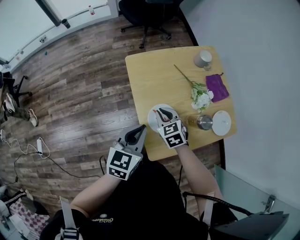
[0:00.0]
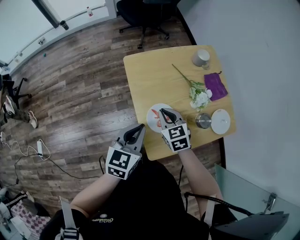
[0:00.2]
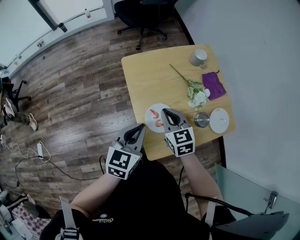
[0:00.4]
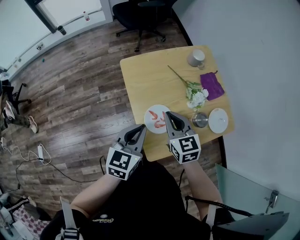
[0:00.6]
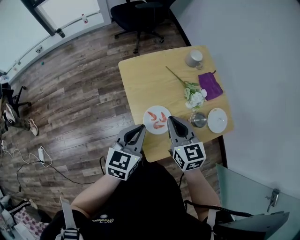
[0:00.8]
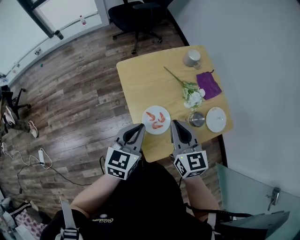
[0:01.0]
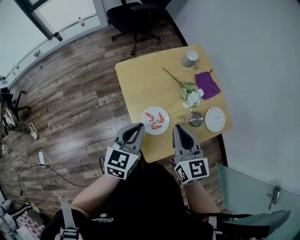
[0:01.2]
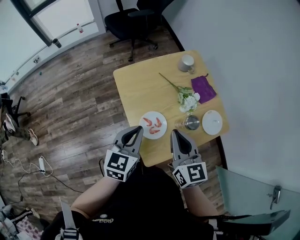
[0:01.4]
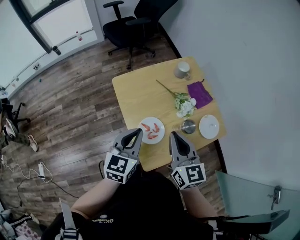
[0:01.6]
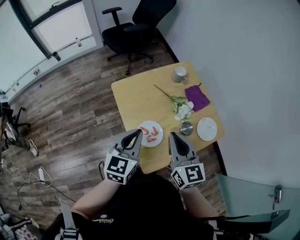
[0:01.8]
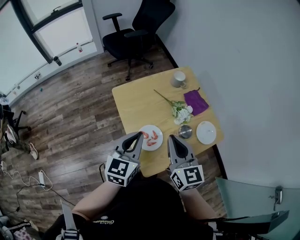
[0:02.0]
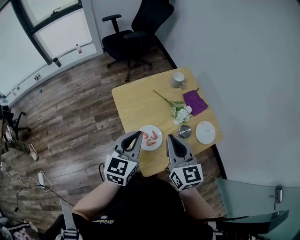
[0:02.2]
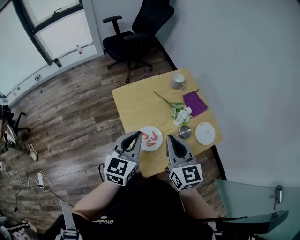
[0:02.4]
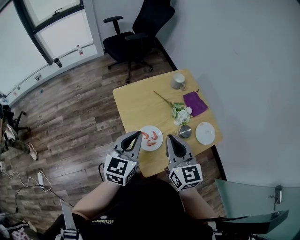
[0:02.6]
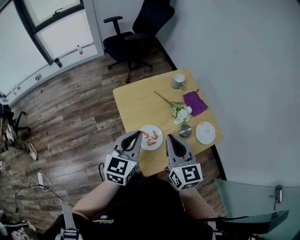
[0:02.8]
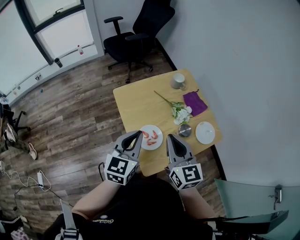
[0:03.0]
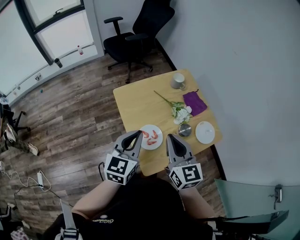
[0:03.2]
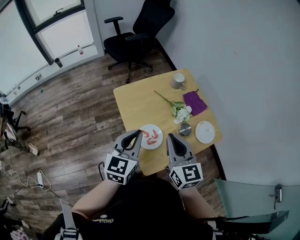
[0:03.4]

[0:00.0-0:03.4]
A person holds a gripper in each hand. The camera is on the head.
0:00.0 to 0:01.6: The left gripper ends up about 5 cm from where it was. Meanwhile the right gripper is displaced upward and to the right by approximately 20 cm, and angles its fingers upward, by some 30 degrees.
0:01.6 to 0:03.4: There are only small adjustments of the grippers.

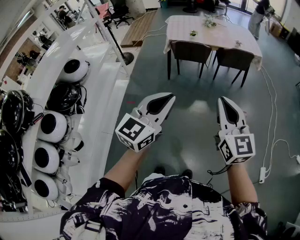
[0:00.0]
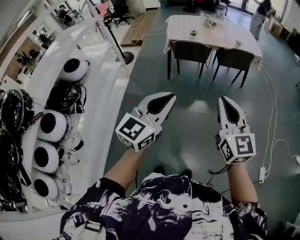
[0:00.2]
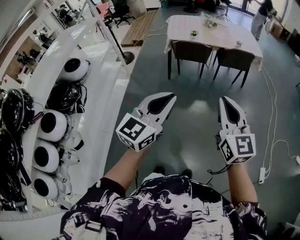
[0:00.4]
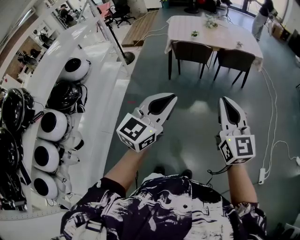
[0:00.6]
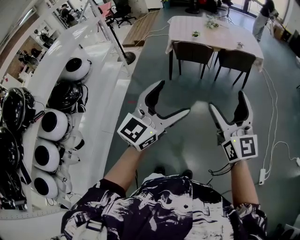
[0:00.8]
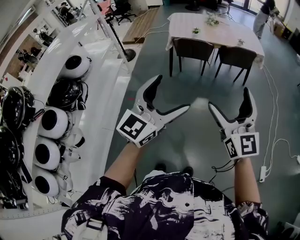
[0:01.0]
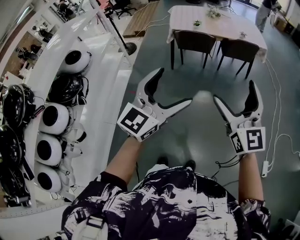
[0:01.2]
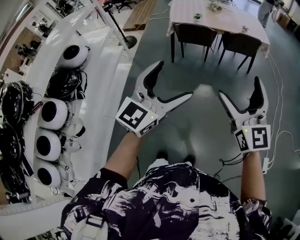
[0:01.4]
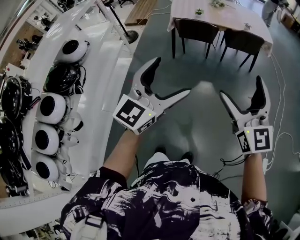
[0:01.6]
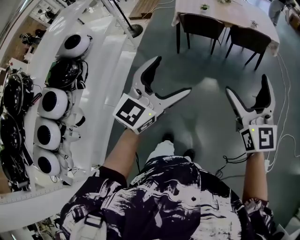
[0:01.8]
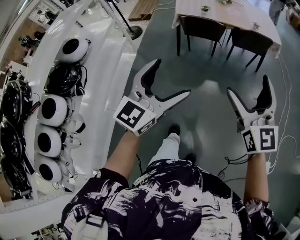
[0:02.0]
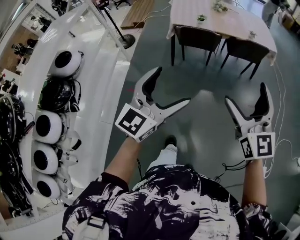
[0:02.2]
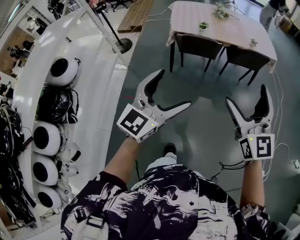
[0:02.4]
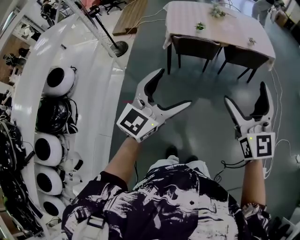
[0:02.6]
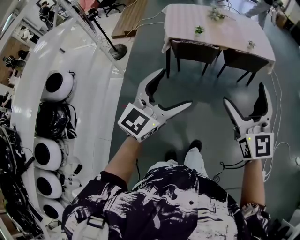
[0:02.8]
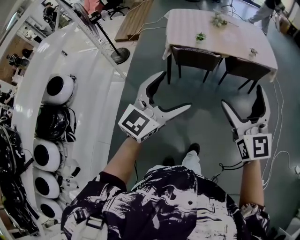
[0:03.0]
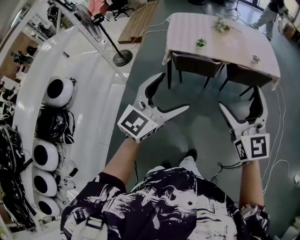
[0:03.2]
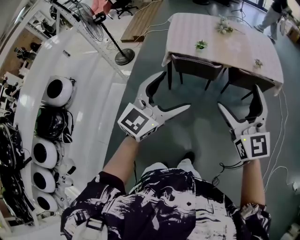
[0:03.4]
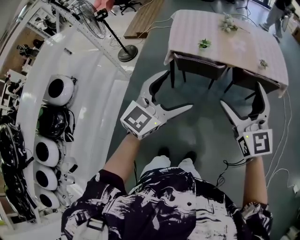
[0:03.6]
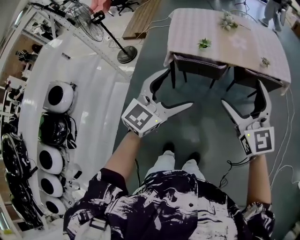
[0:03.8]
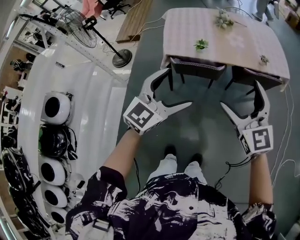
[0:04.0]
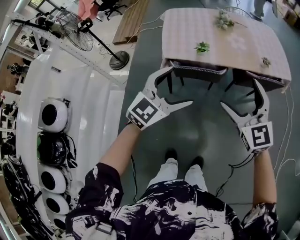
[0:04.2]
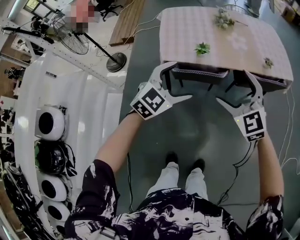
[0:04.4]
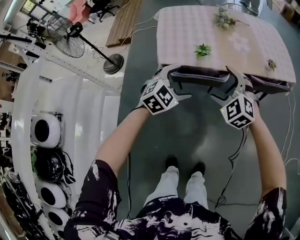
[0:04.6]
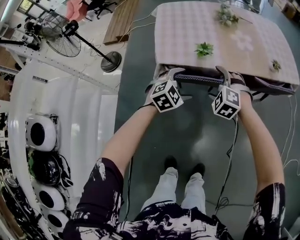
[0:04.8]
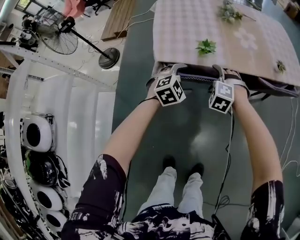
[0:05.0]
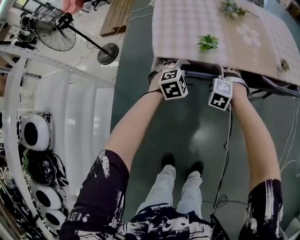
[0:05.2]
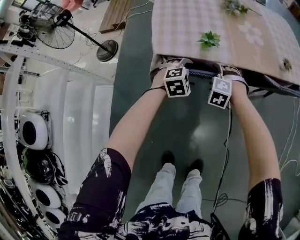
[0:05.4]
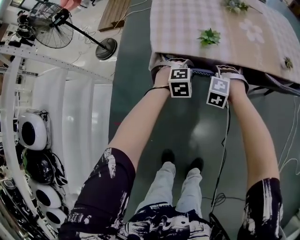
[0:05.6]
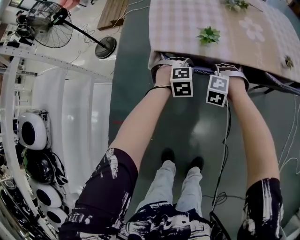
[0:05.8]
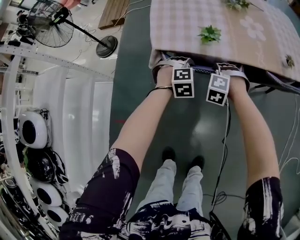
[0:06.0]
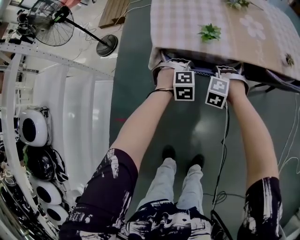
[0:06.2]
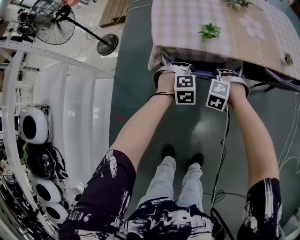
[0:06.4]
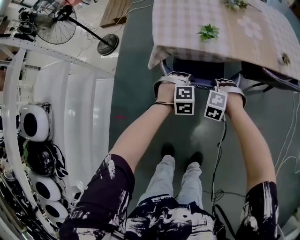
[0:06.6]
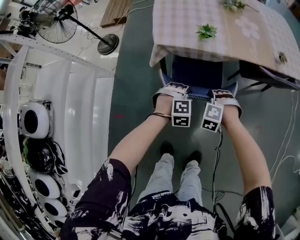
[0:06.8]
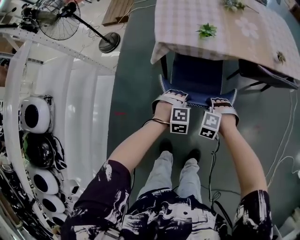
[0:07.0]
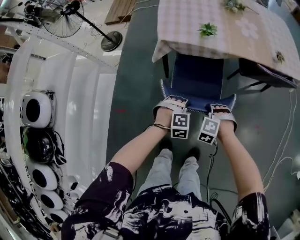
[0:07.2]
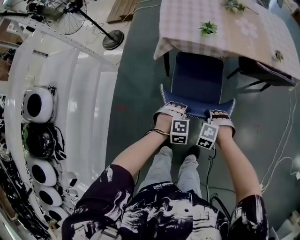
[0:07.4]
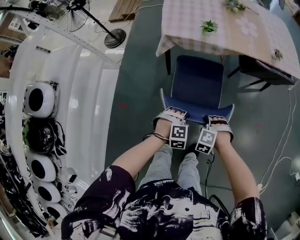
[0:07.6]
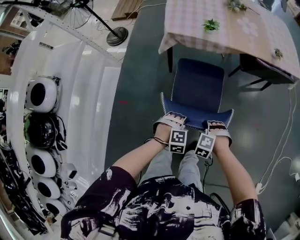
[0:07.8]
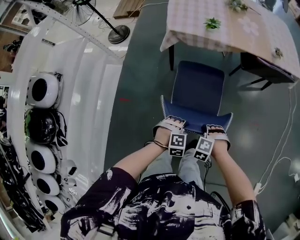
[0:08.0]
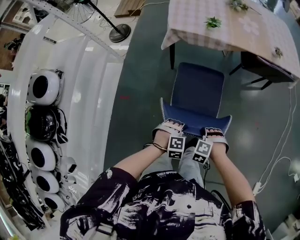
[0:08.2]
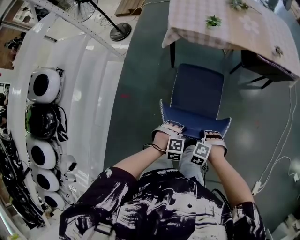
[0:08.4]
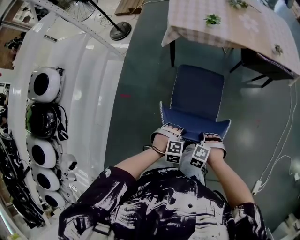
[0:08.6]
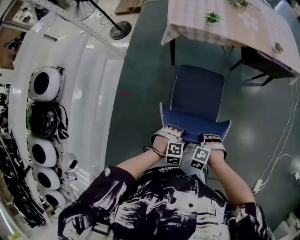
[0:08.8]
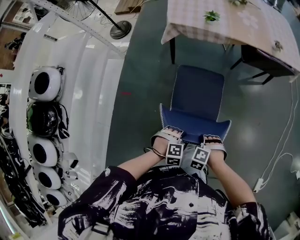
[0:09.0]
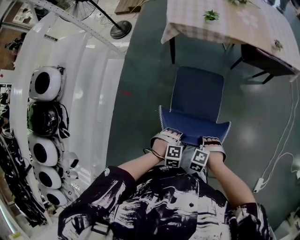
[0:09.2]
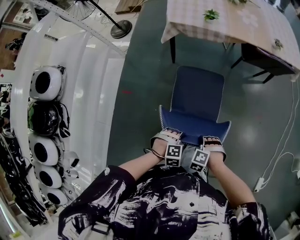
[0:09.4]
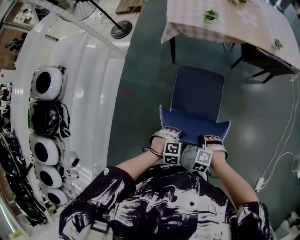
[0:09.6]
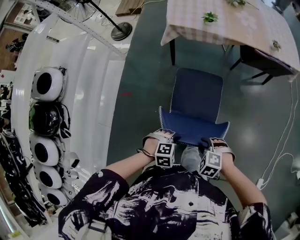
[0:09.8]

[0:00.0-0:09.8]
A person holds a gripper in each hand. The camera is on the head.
0:00.0 to 0:01.4: The right gripper opens its fingers. The left gripper opens up.
0:01.4 to 0:02.8: The two grippers go roughly 30 cm forward.
0:02.8 to 0:04.2: Both grippers move forward, roughly 30 cm. The left gripper changes its angle by about 20 degrees.
0:04.2 to 0:05.6: Both grippers move downward and forward, some 50 cm. The right gripper angles its fingers downward, by roughly 50 degrees, and closes its fingers. The left gripper tilts its fingers about 40 degrees downward, and closes.
0:05.6 to 0:07.0: Both grippers travel together backward, approximately 20 cm.
0:07.0 to 0:08.4: The left gripper changes place by about 30 cm, while the right gripper moves about 30 cm.
0:08.4 to 0:09.8: The right gripper moves upward, some 10 cm, and changes its angle by roughly 20 degrees, while the left gripper shifts by roughly 10 cm.

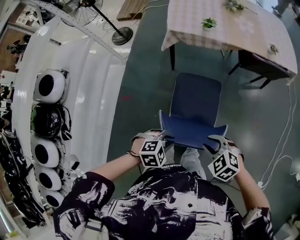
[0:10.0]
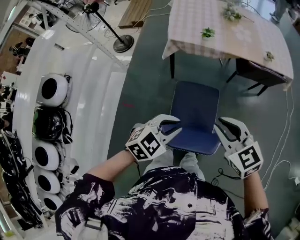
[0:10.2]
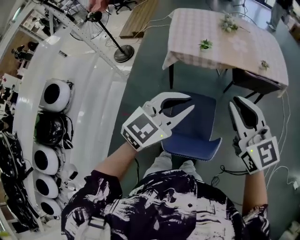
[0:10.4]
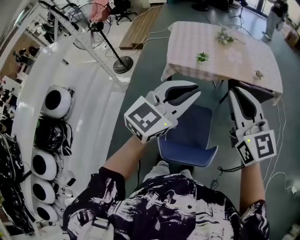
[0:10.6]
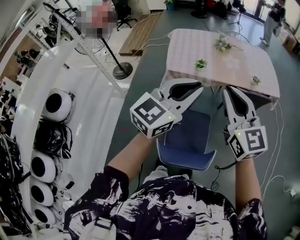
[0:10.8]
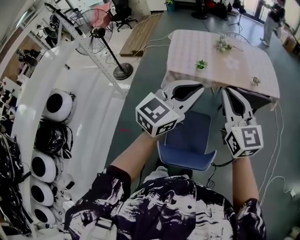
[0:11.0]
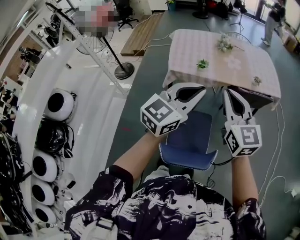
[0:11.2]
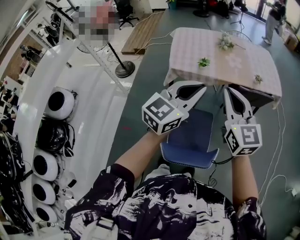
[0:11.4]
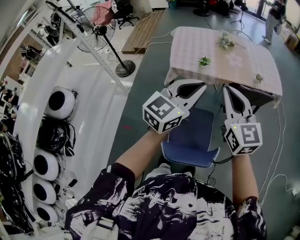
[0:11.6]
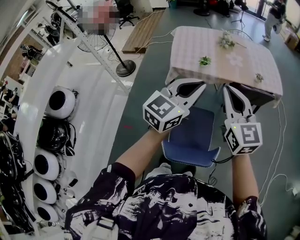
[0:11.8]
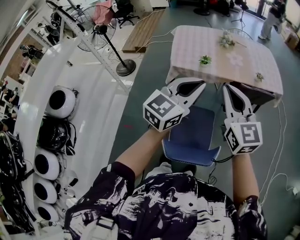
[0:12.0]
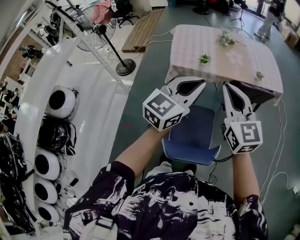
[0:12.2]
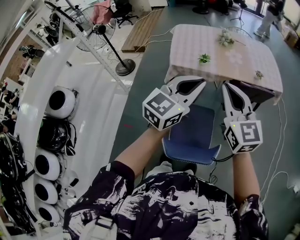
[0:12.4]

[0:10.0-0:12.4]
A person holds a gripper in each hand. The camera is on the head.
0:10.0 to 0:11.2: The two grippers go about 35 cm upward. The right gripper angles its fingers upward, by approximately 50 degrees; the left gripper tips its fingers upward by some 60 degrees.
0:11.2 to 0:12.4: The grippers stay close to where they were, moving slightly.

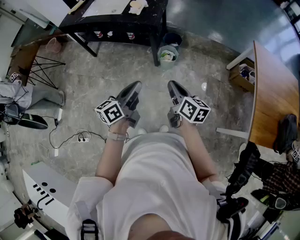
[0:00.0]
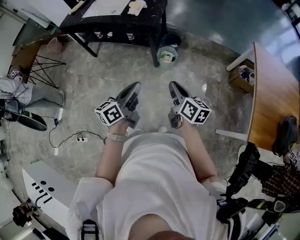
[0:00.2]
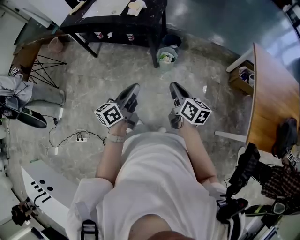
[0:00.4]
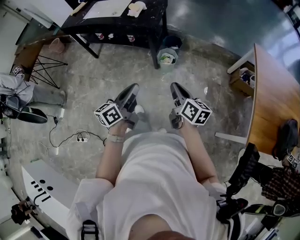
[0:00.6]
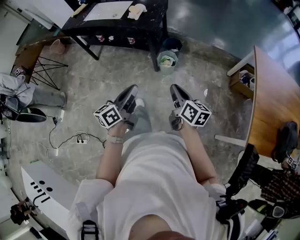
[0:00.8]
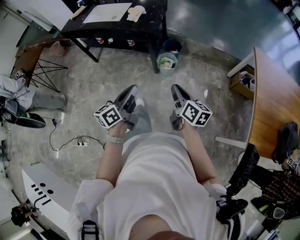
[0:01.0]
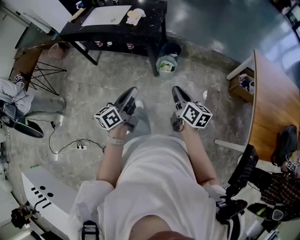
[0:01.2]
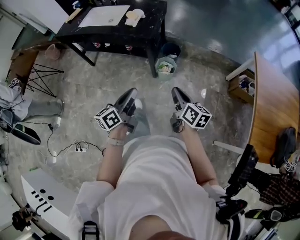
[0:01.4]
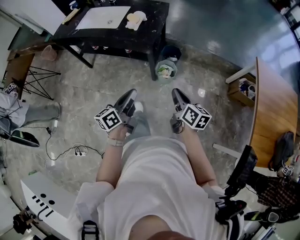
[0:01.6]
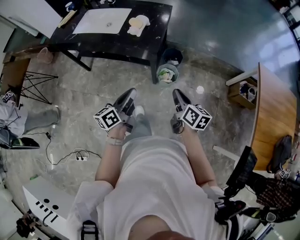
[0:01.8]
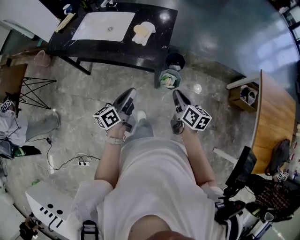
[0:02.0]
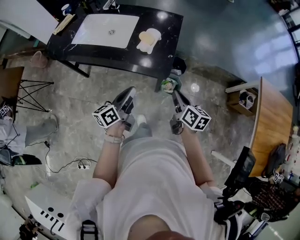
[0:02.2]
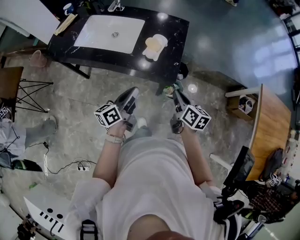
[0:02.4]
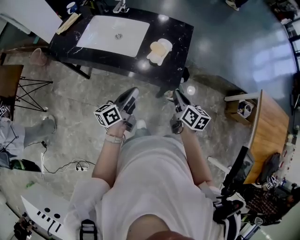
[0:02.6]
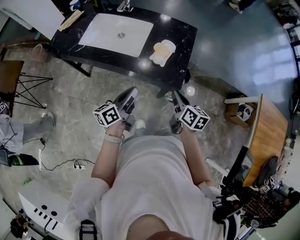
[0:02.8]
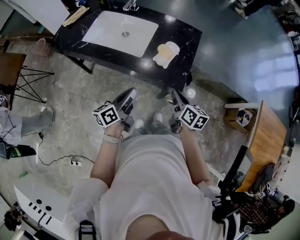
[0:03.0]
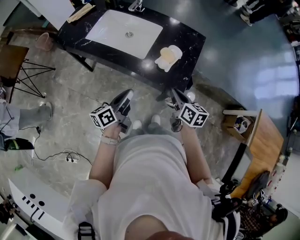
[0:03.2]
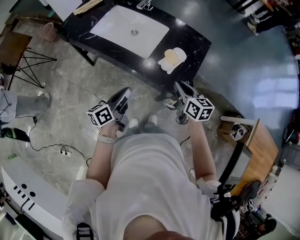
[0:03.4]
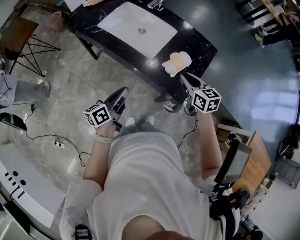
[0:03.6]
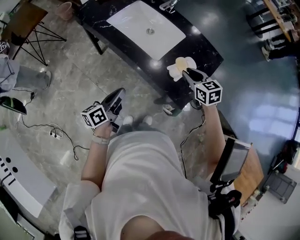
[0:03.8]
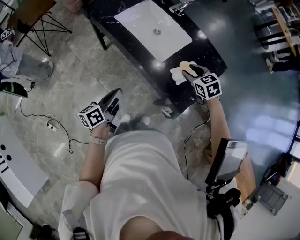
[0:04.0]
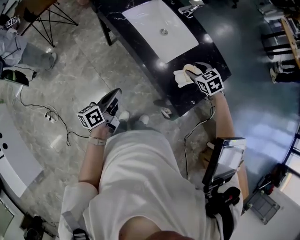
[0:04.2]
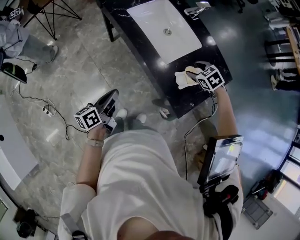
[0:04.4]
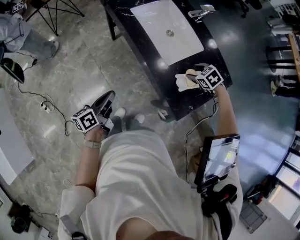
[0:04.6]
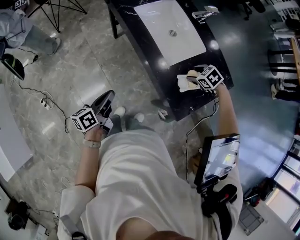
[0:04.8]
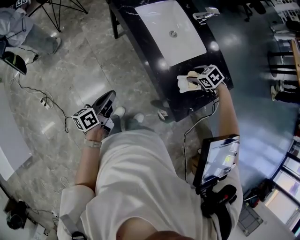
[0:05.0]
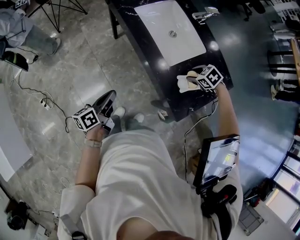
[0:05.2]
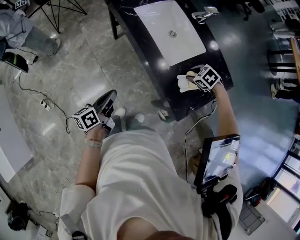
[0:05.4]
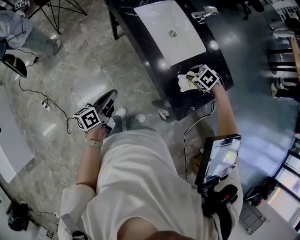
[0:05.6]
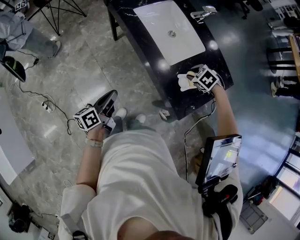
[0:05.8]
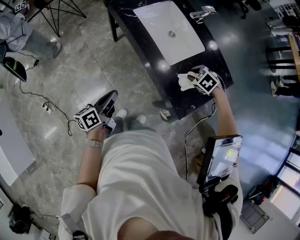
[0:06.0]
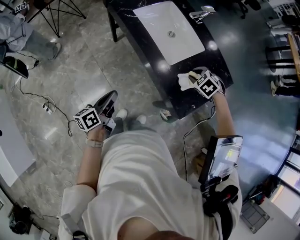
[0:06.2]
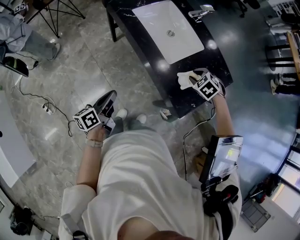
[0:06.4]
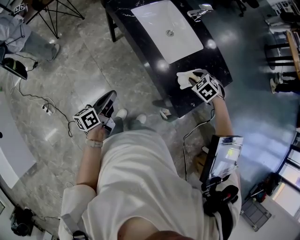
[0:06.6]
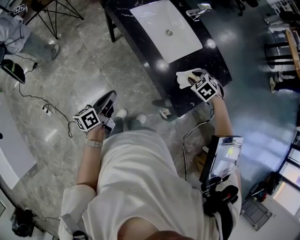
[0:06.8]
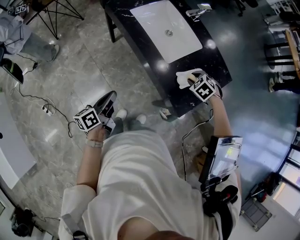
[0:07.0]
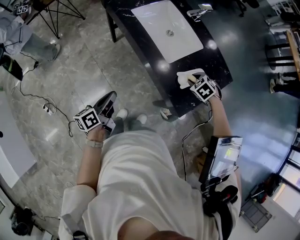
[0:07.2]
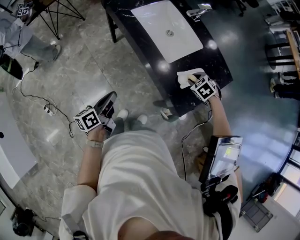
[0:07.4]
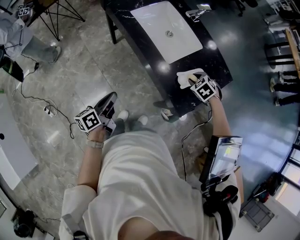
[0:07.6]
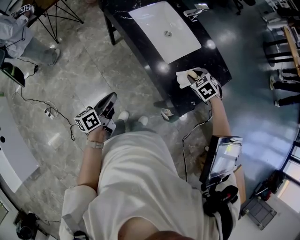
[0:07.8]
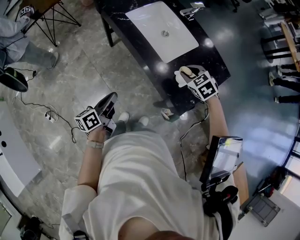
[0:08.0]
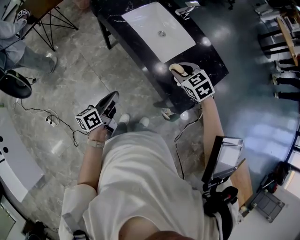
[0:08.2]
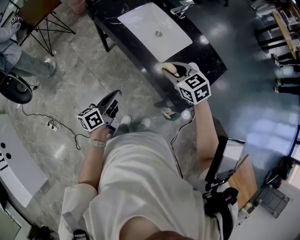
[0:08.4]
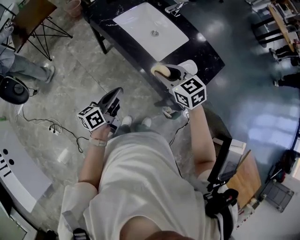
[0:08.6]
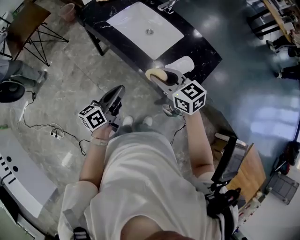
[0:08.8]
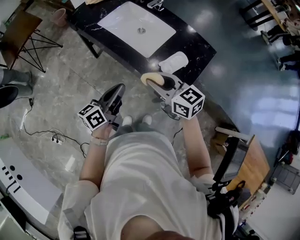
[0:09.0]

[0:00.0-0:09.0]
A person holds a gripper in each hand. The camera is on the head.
0:00.0 to 0:01.6: Both grippers move forward, some 15 cm.
0:01.6 to 0:03.0: The grippers both shift forward and to the left by roughly 40 cm.
0:03.0 to 0:04.4: The left gripper moves approximately 10 cm, and turns by about 30 degrees; the right gripper ends up roughly 25 cm from where it was, rotates around the line of its fingers by approximately 80 degrees, counterclockwise from behind, and opens.
0:04.4 to 0:06.0: The right gripper closes up.
0:06.0 to 0:07.6: The grippers move only a little.
0:07.6 to 0:09.0: The left gripper travels to the right and upward by some 15 cm, and swivels some 30 degrees. The right gripper travels upward, to the left and backward by roughly 25 cm, and tilts its fingers roughly 50 degrees upward.
